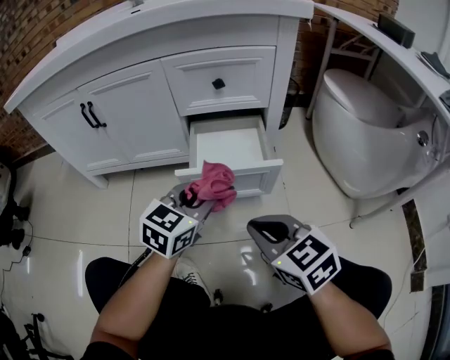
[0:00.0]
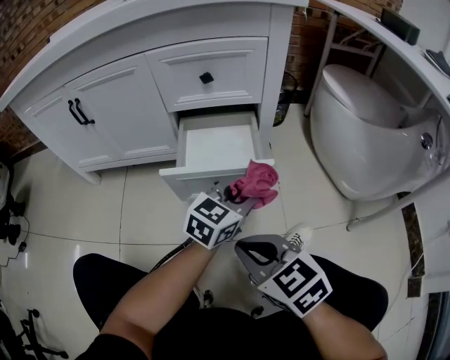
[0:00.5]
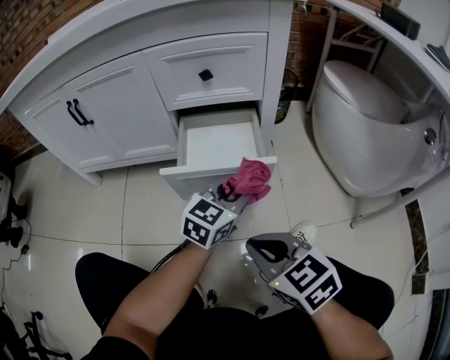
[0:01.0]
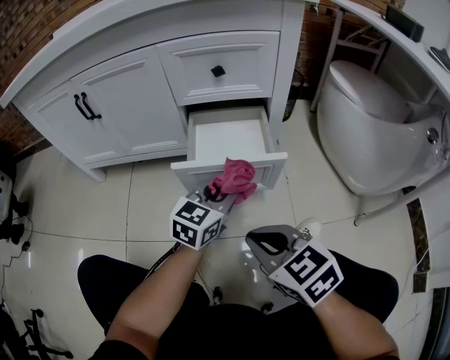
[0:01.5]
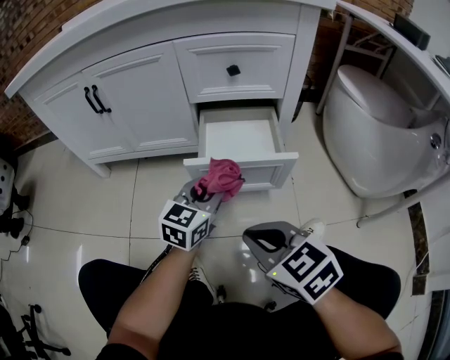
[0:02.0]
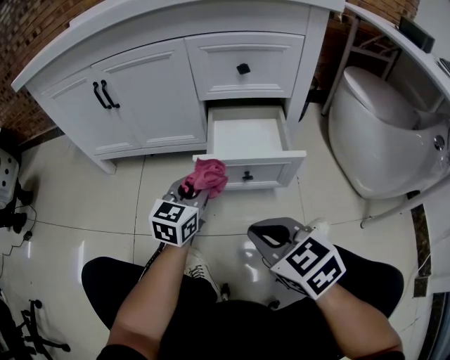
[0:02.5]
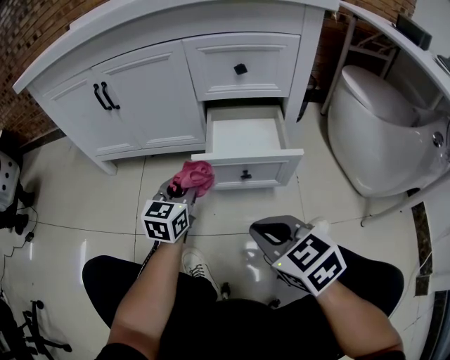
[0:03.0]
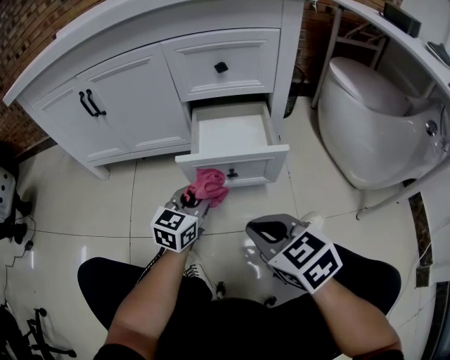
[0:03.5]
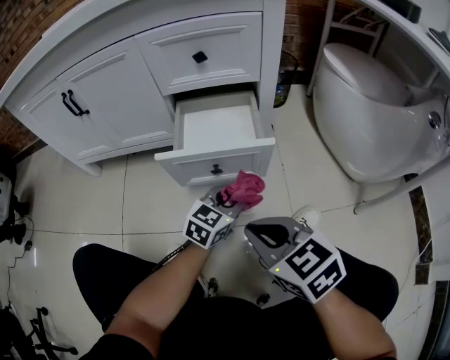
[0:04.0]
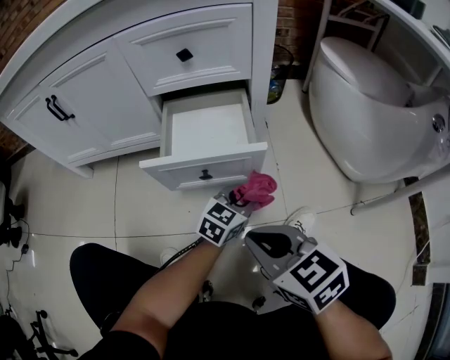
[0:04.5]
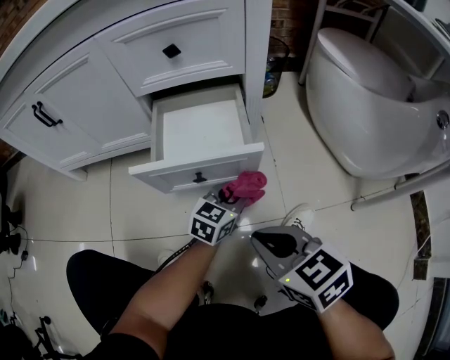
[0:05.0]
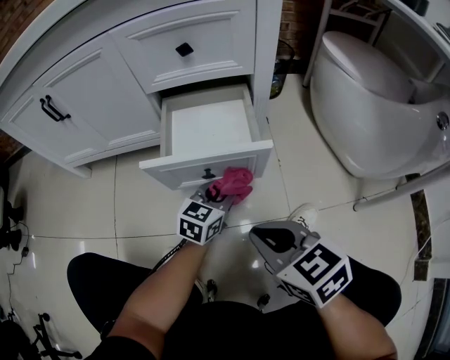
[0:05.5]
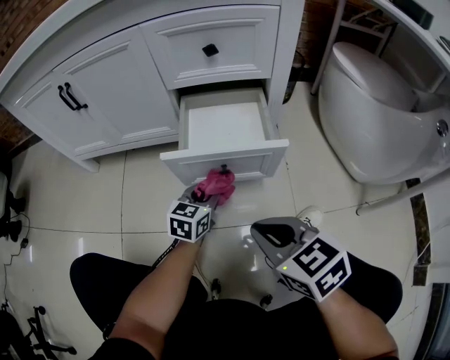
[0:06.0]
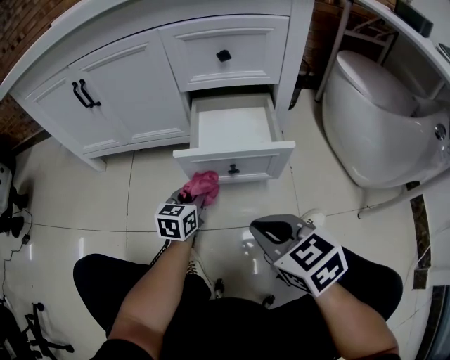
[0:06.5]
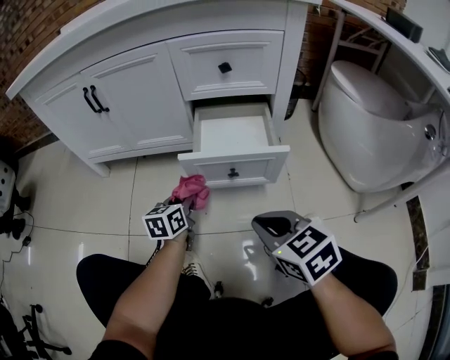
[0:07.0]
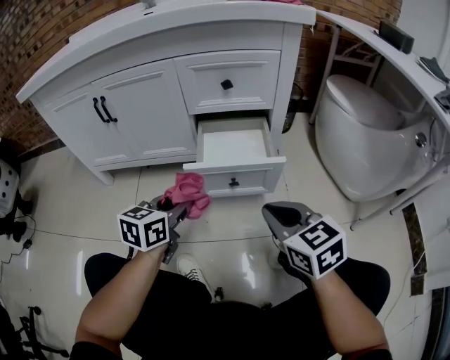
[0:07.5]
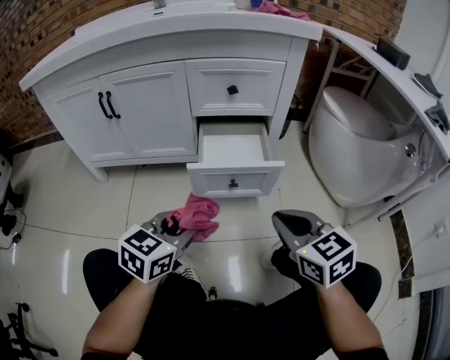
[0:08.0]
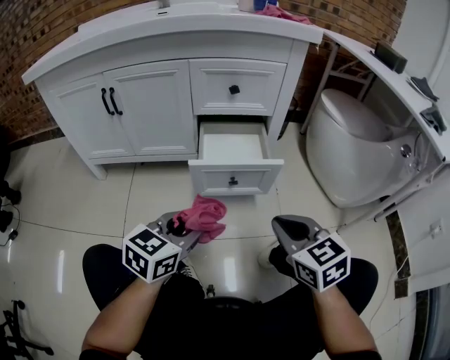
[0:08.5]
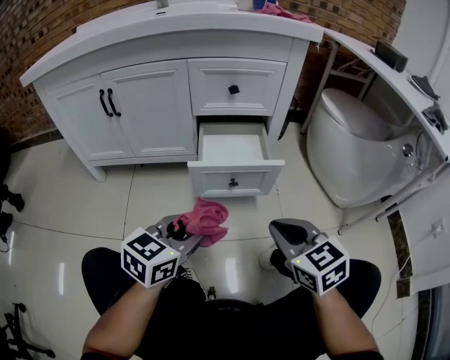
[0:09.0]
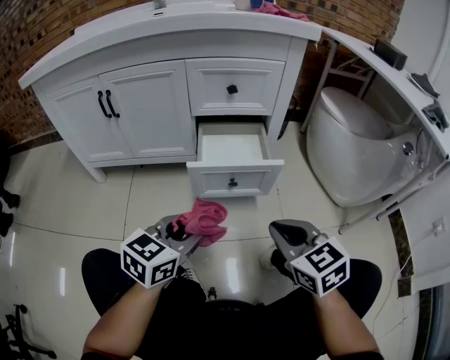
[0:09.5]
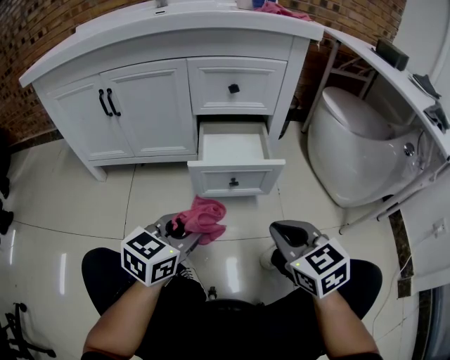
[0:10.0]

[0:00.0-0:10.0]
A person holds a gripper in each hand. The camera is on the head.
0:00.0 to 0:02.0: The left gripper goes approximately 5 cm downward, and reaches about 15 cm to the right, then returns.
0:02.0 to 0:04.0: The right gripper shifts approximately 5 cm to the right; the left gripper heads to the right and downward, covering approximately 15 cm.
0:04.0 to 0:06.0: The left gripper is displaced to the left by roughly 10 cm.
0:06.0 to 0:08.0: The left gripper shifts some 25 cm upward, backward and to the left. The right gripper goes approximately 10 cm upward.
0:08.0 to 0:10.0: The grippers move only a little.

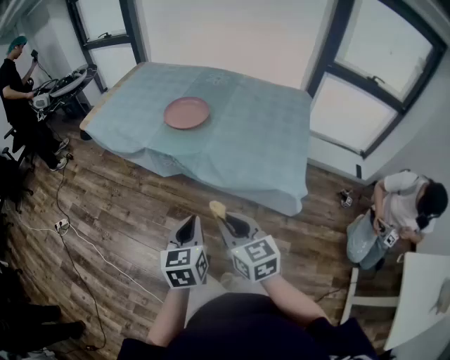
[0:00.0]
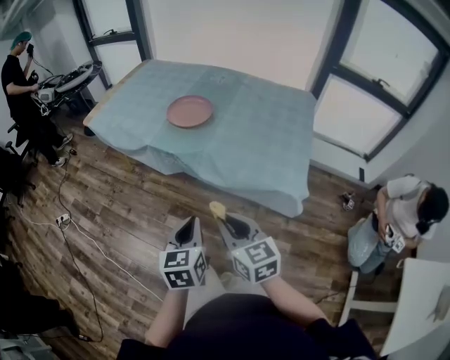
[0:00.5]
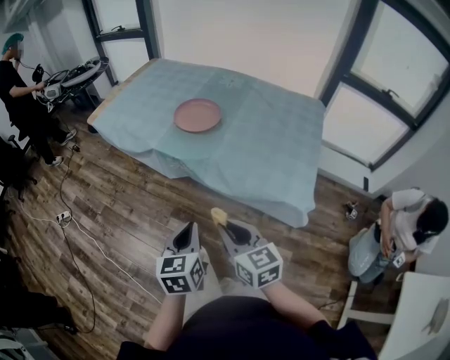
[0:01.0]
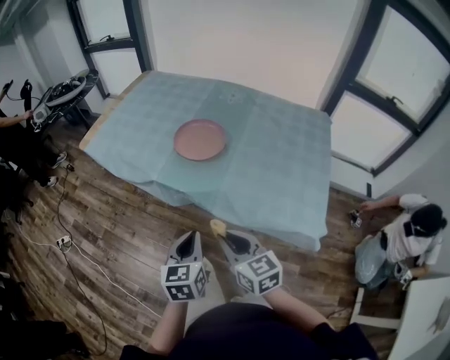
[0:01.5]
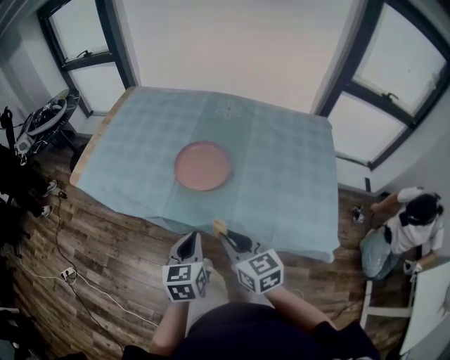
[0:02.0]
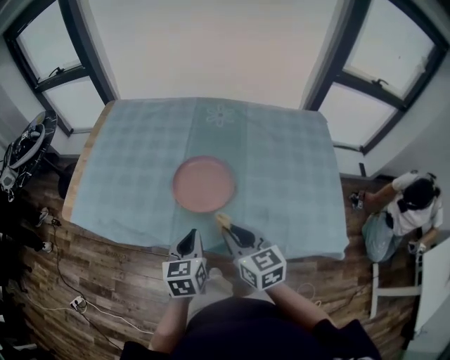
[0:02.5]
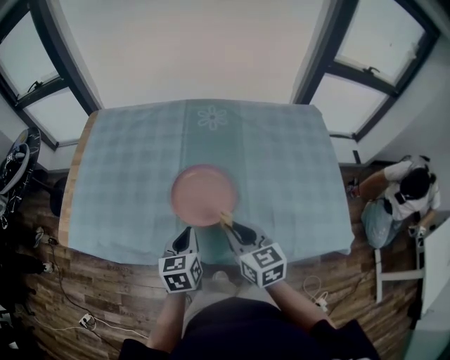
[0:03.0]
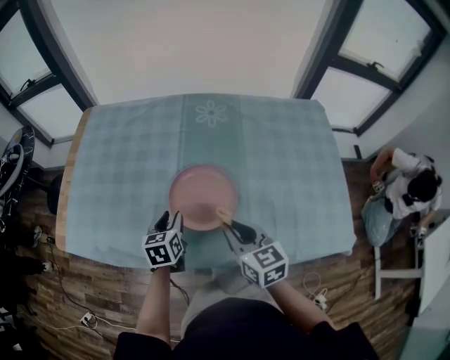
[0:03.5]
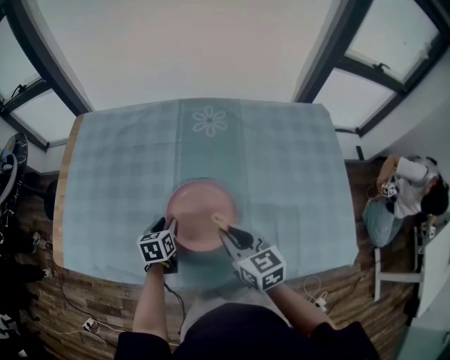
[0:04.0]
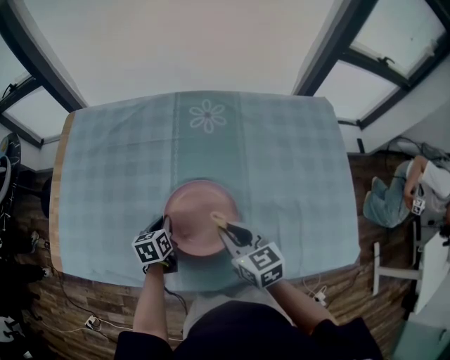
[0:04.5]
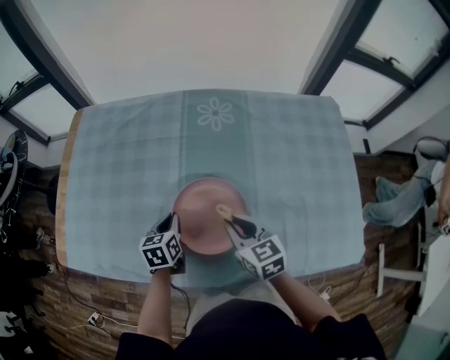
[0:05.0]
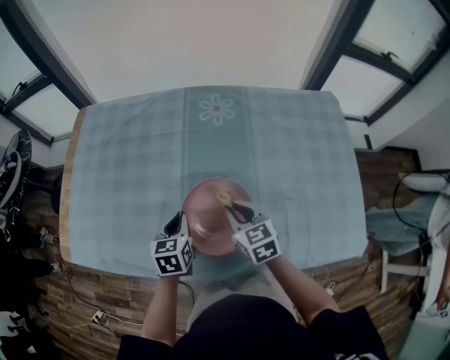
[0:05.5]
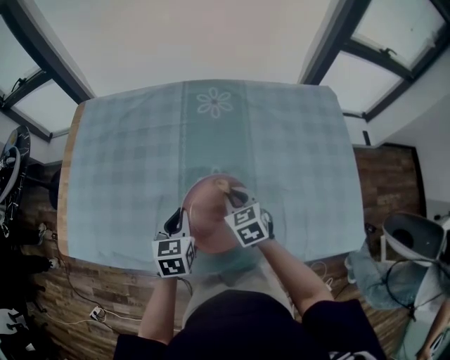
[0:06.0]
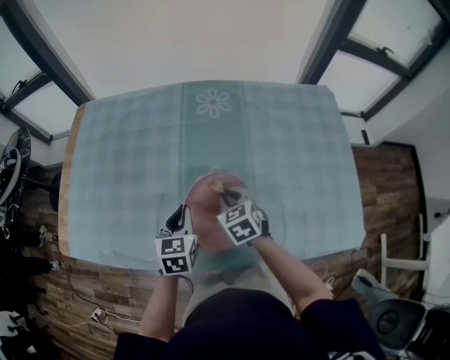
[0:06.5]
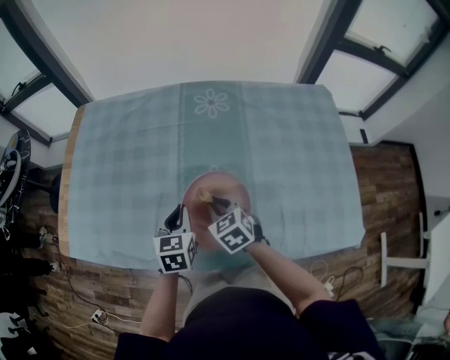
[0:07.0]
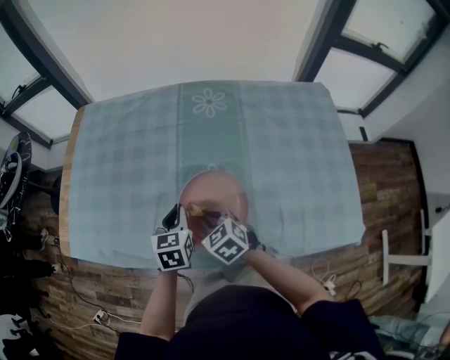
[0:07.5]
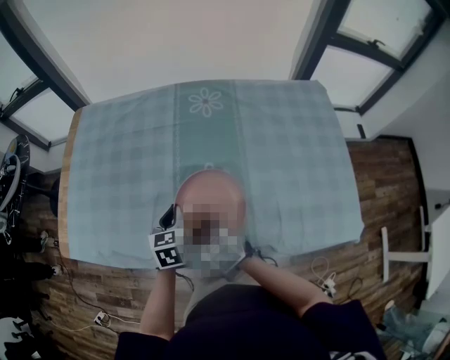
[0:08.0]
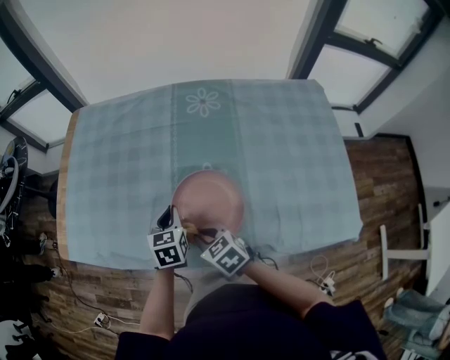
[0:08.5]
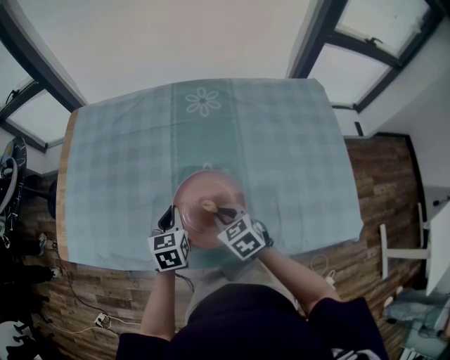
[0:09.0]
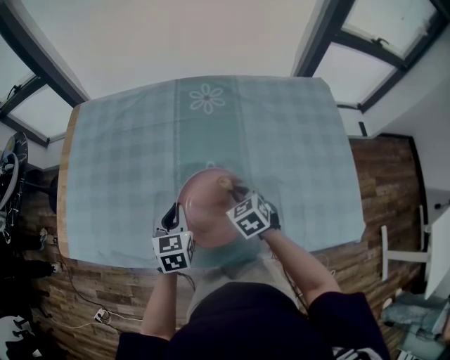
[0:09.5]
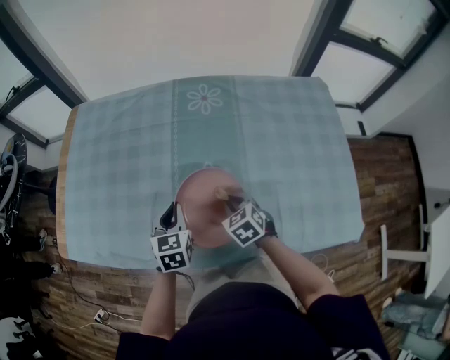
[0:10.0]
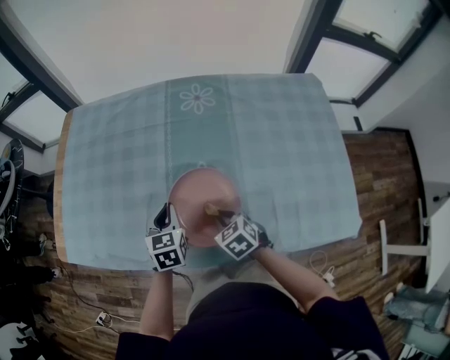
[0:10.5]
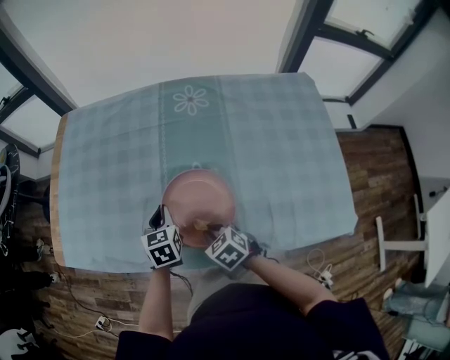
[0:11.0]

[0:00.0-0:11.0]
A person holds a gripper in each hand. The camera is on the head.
0:00.0 to 0:02.0: The two grippers go roughly 30 cm forward.
0:02.0 to 0:03.5: The two grippers go roughly 25 cm forward. The left gripper opens its fingers.
0:03.5 to 0:05.5: The left gripper moves some 10 cm downward and comes back, and closes. The right gripper heads forward and downward, covering some 15 cm.
0:05.5 to 0:07.5: The right gripper moves to the left and backward, about 10 cm, and swivels about 20 degrees.
0:07.5 to 0:09.0: The right gripper moves to the right, some 5 cm.
0:09.0 to 0:11.0: The right gripper goes roughly 5 cm backward.

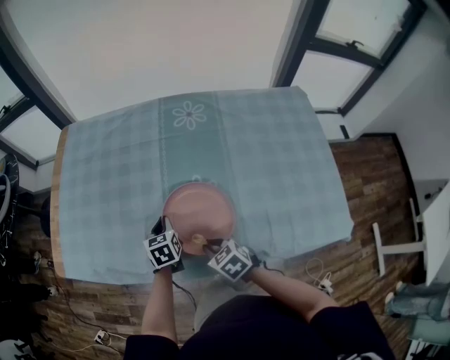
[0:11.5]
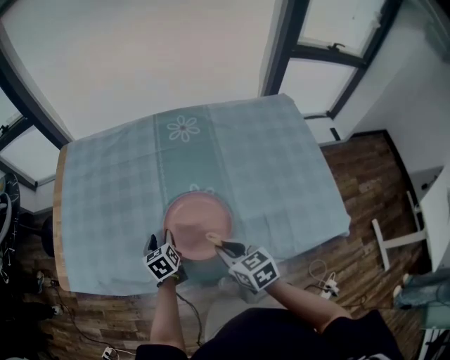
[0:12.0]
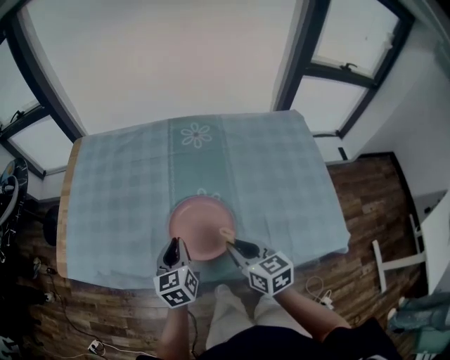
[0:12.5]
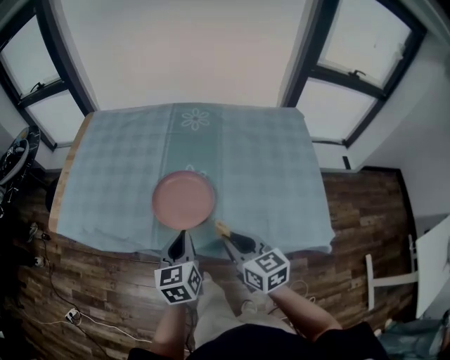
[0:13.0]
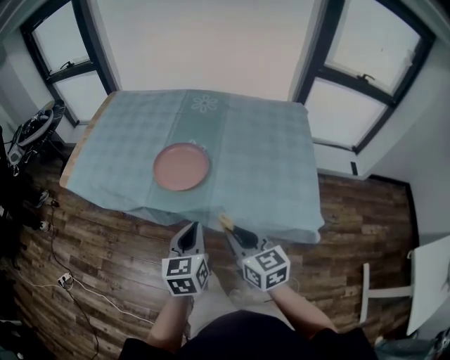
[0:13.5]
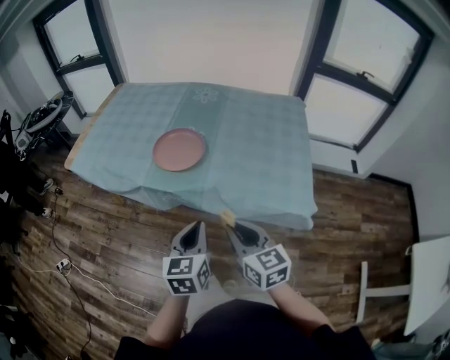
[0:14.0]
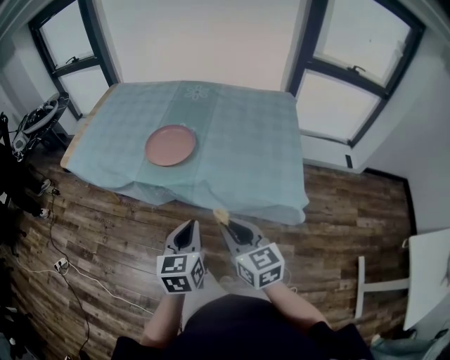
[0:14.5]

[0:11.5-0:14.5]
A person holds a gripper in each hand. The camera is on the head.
0:11.5 to 0:13.0: The left gripper is displaced backward and upward by about 30 cm, turns by some 20 degrees, and opens, then closes again. The right gripper heads upward, backward and to the right, covering approximately 25 cm, and tips its fingers upward by approximately 30 degrees.
0:13.0 to 0:14.5: Both grippers travel together backward, some 25 cm.

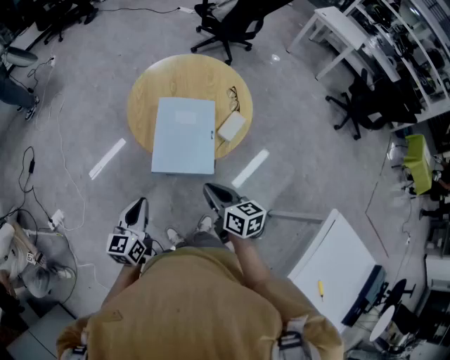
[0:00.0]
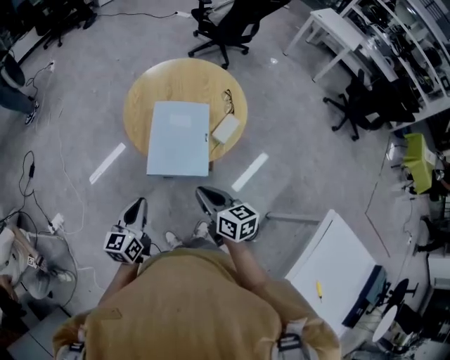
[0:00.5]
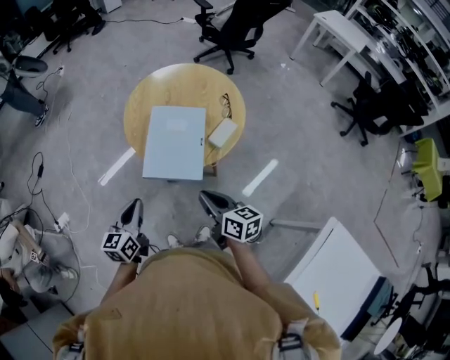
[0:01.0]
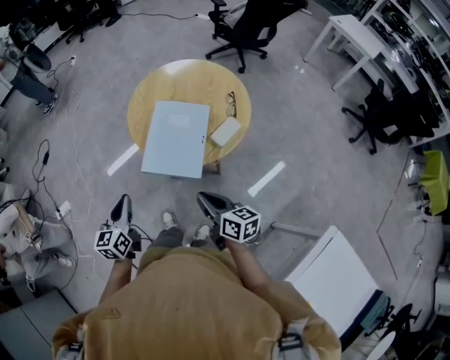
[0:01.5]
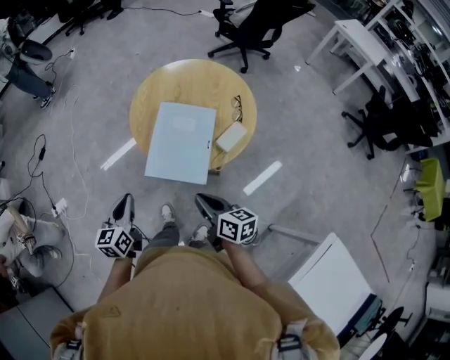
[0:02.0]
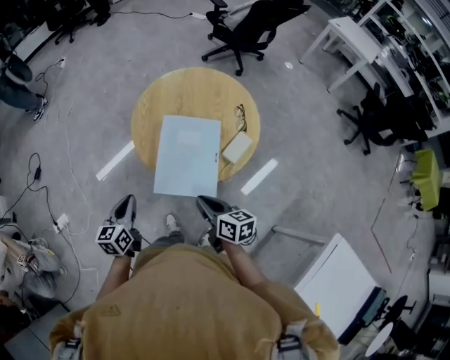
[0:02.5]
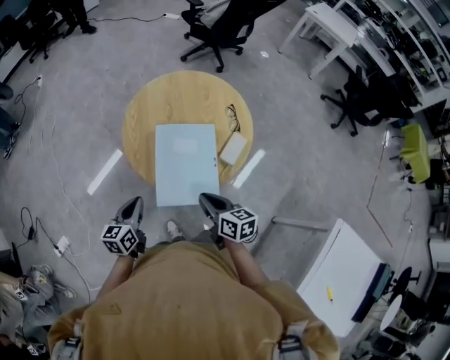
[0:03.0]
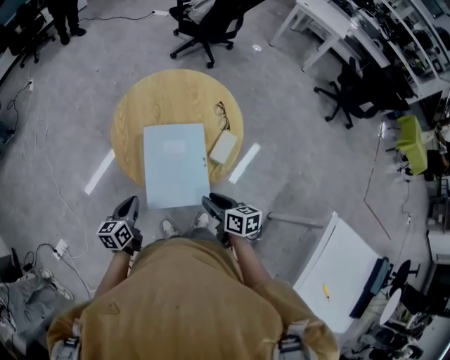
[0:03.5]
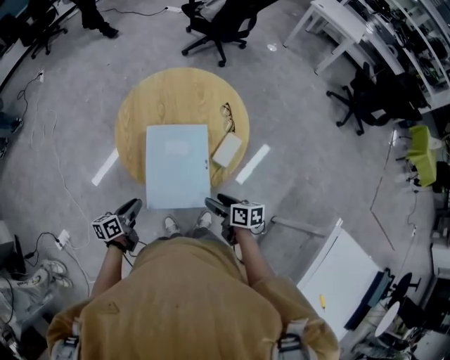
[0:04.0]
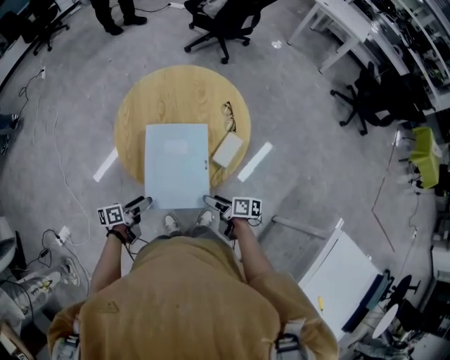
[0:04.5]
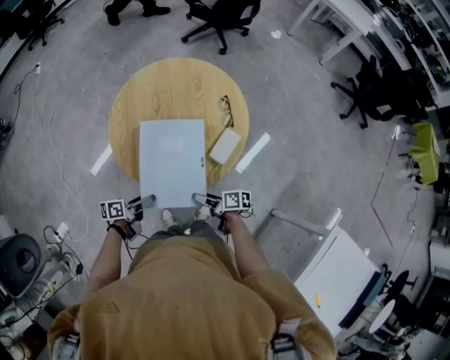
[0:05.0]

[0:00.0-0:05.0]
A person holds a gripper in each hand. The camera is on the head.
0:00.0 to 0:02.5: The right gripper is displaced forward by roughly 5 cm. Meanwhile the left gripper heads forward, covering approximately 10 cm.
0:02.5 to 0:05.0: The right gripper moves downward, about 15 cm, changes its angle by about 40 degrees, and opens up. The left gripper shifts some 20 cm downward, to the right and forward, turns by roughly 60 degrees, and opens up.
